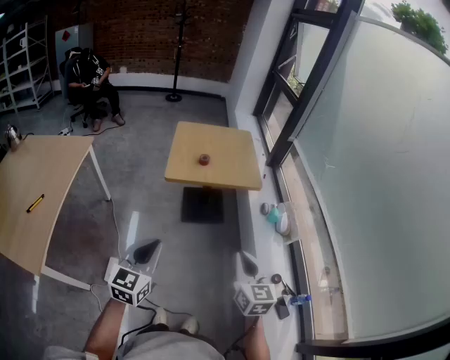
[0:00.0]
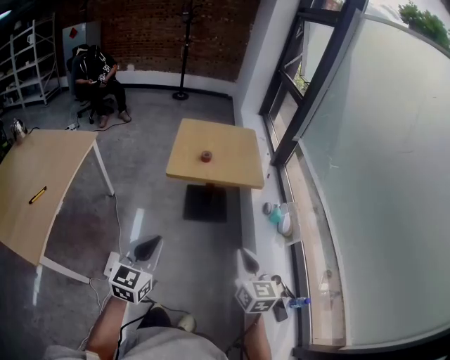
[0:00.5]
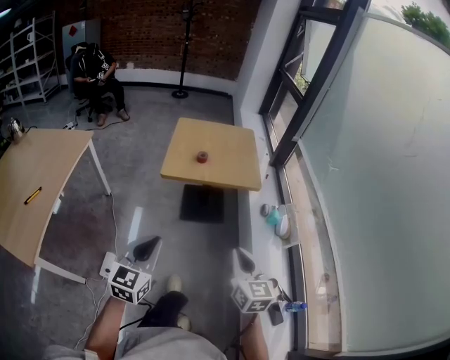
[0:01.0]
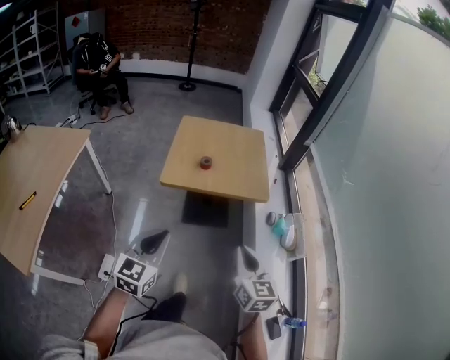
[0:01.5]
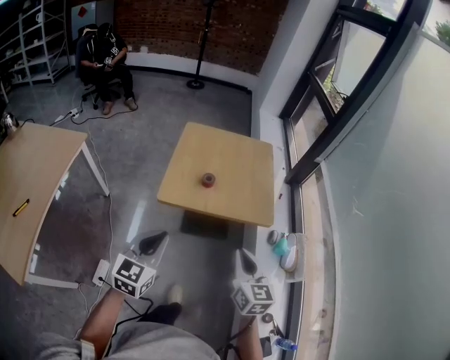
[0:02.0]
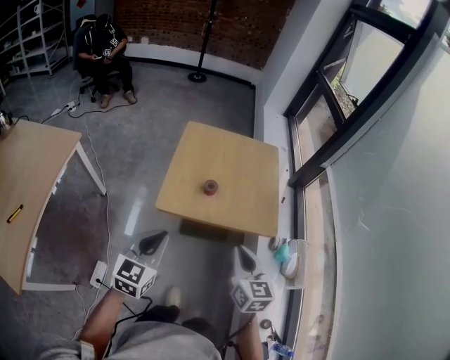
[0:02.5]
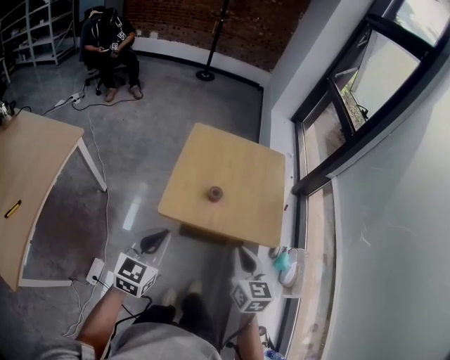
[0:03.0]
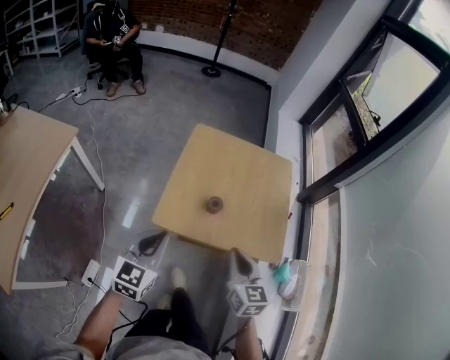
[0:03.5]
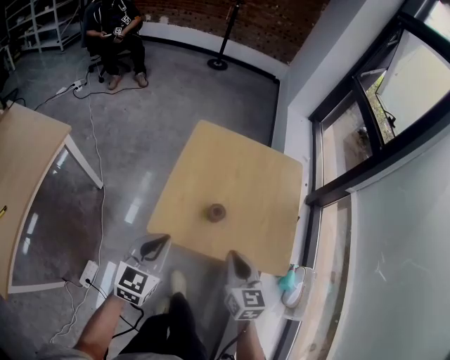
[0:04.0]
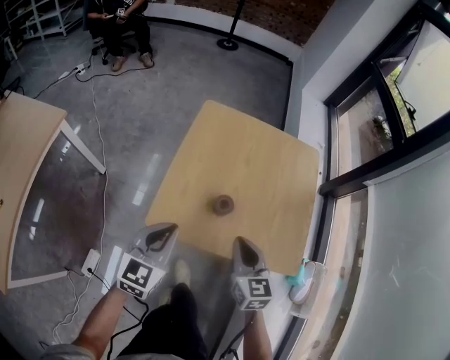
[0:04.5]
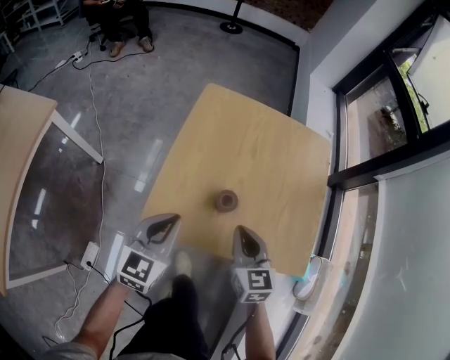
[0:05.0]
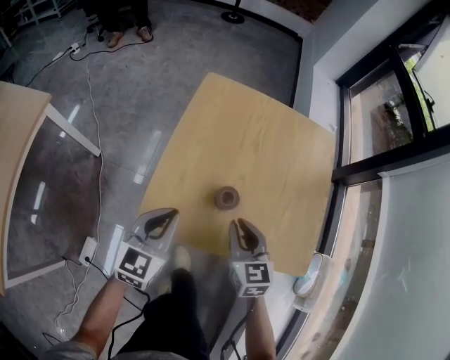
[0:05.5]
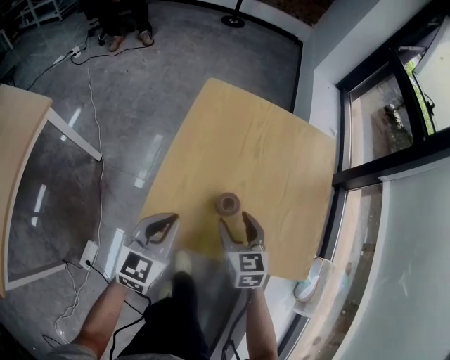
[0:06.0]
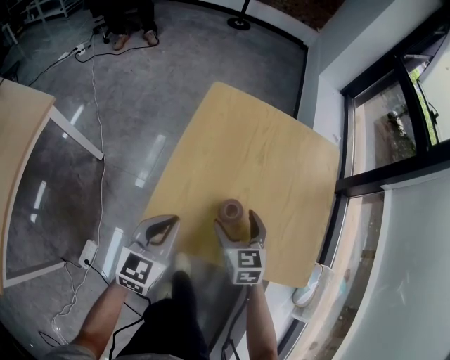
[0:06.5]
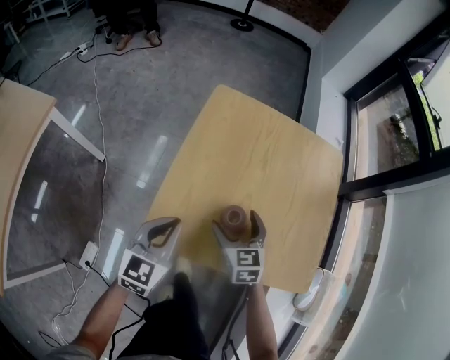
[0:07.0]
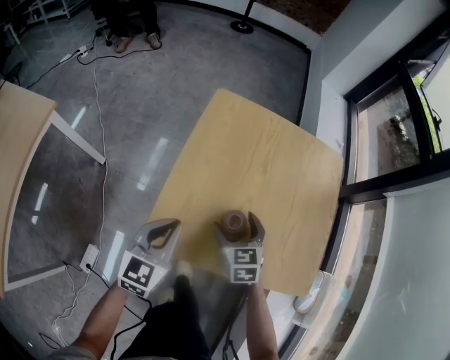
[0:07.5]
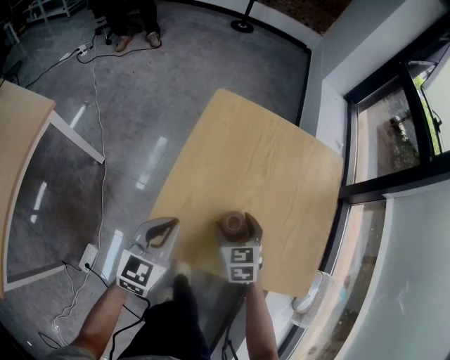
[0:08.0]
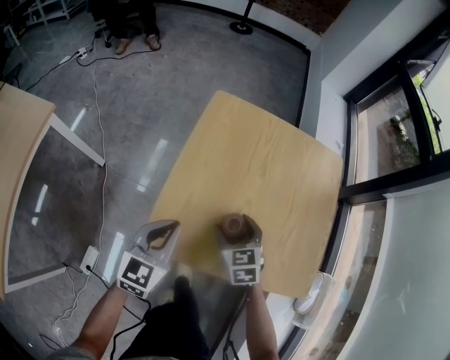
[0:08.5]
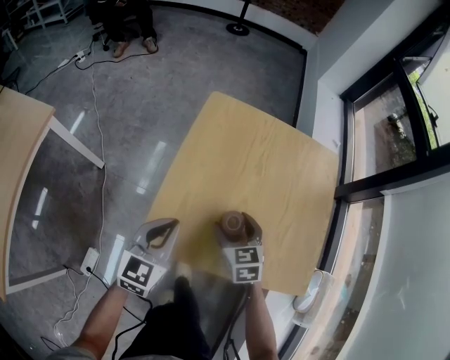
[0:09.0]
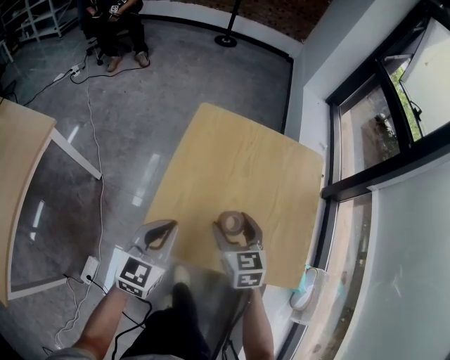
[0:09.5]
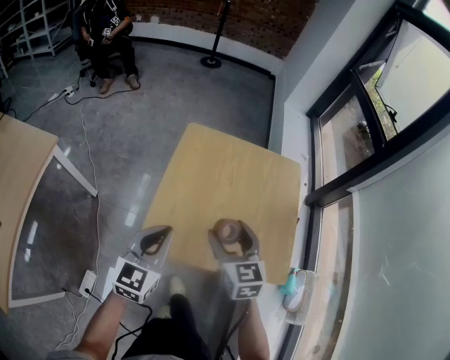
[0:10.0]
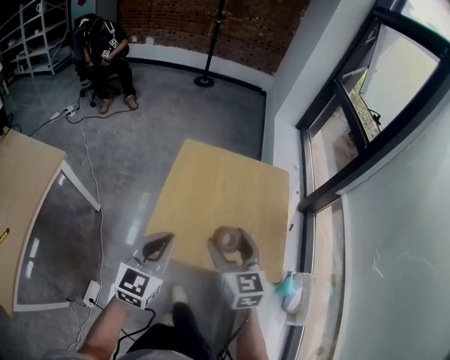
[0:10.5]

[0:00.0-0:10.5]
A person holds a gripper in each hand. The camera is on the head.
0.0 to 2.0 s: Both grippers move forward, about 30 cm.
2.0 to 4.0 s: The grippers both shift forward and downward by some 25 cm.
4.0 to 6.5 s: Both grippers travel together downward and forward, approximately 20 cm. The right gripper opens.
6.5 to 8.5 s: The grippers move only a little.
8.5 to 10.5 s: The right gripper is displaced upward by some 30 cm, and swivels approximately 30 degrees; the left gripper goes some 20 cm upward and backward.

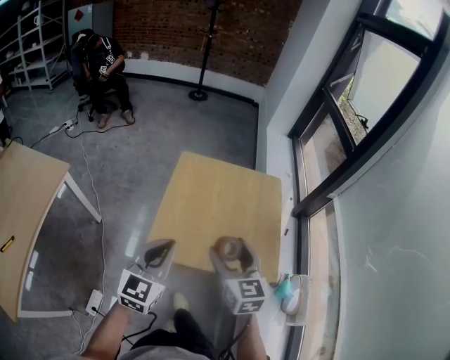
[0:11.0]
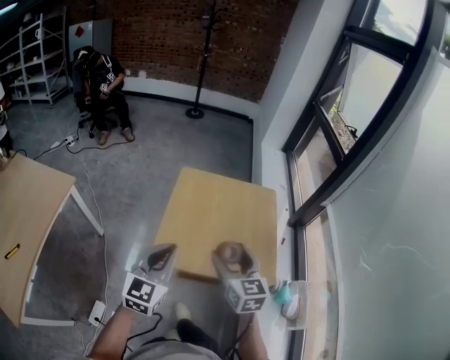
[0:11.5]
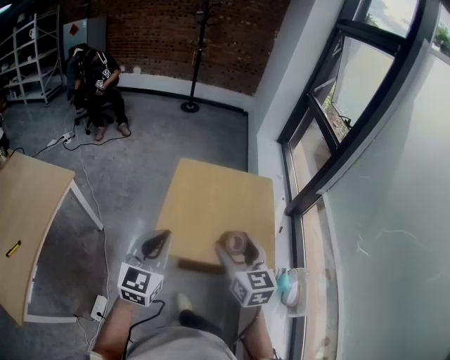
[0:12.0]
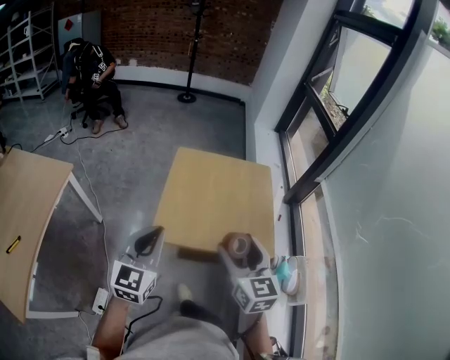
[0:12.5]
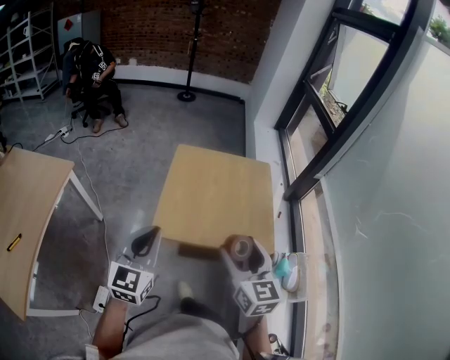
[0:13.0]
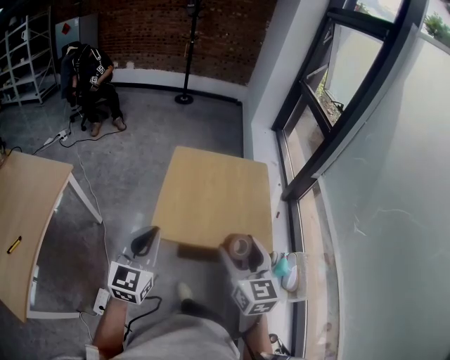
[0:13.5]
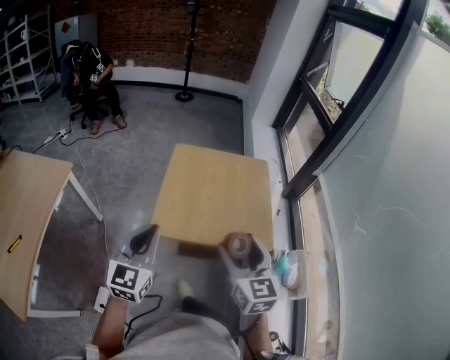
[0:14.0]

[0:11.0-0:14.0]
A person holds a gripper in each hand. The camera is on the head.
11.0 to 12.5 s: Both grippers travel together backward and upward, roughly 10 cm.
12.5 to 14.0 s: The grippers move only a little.

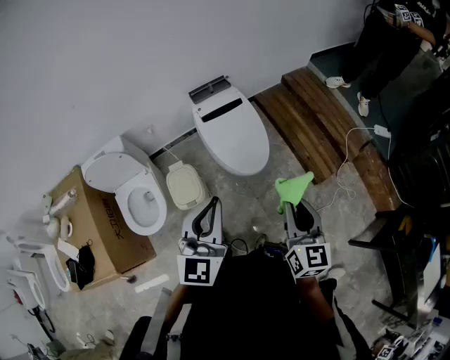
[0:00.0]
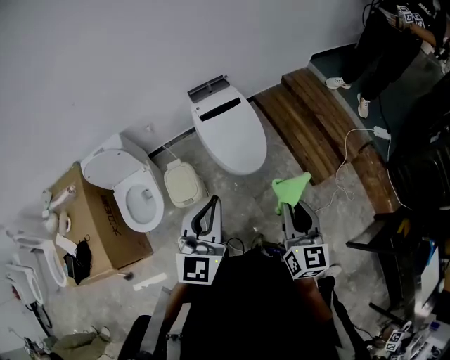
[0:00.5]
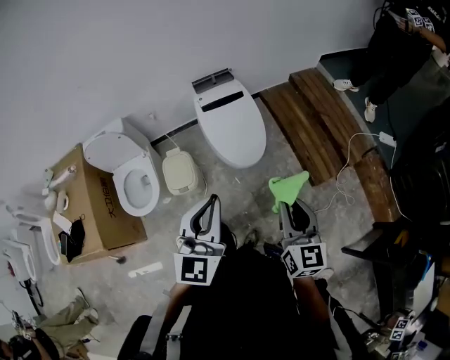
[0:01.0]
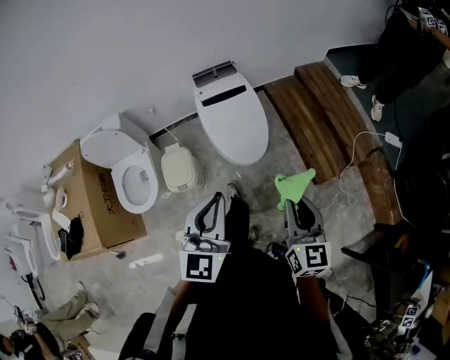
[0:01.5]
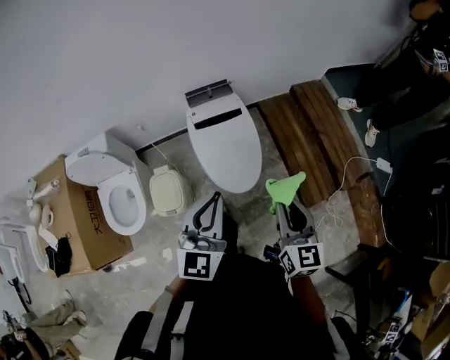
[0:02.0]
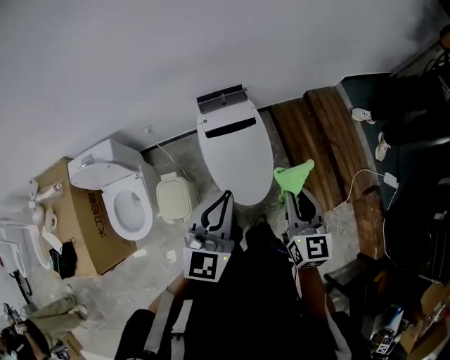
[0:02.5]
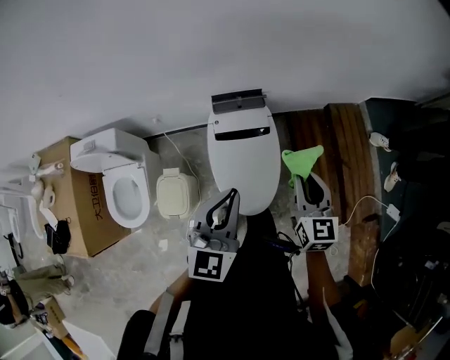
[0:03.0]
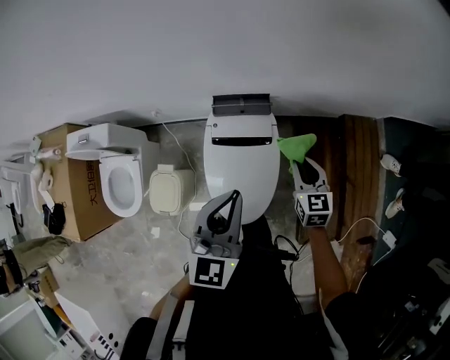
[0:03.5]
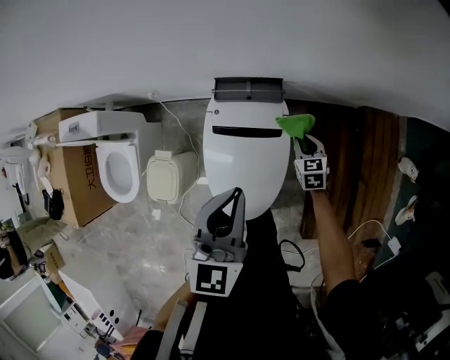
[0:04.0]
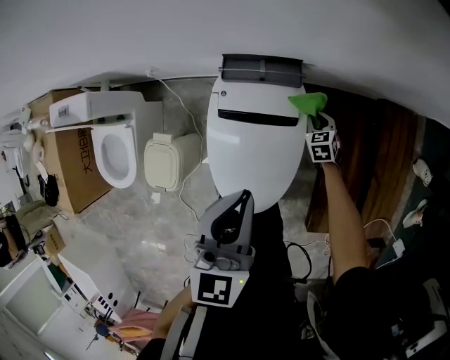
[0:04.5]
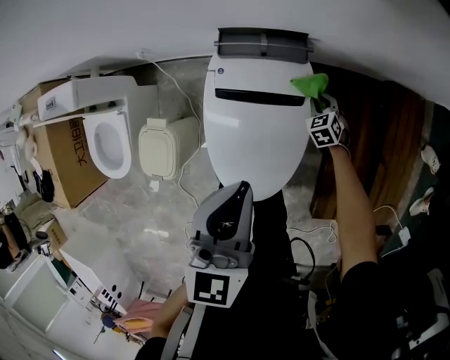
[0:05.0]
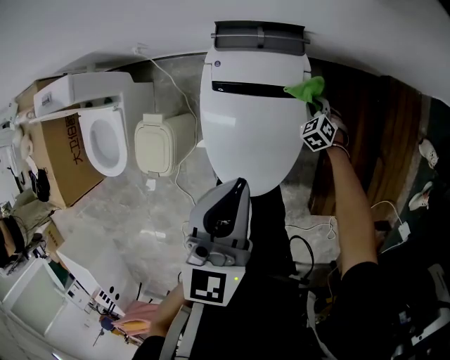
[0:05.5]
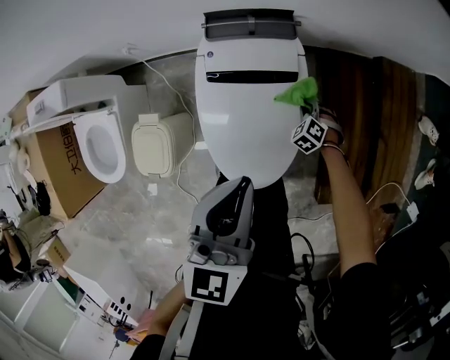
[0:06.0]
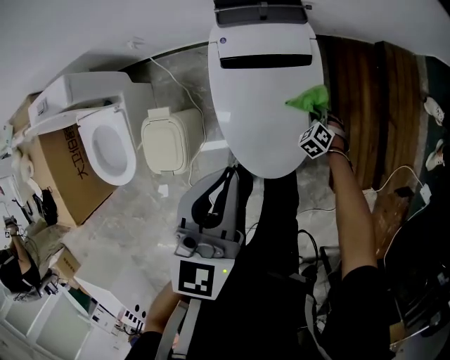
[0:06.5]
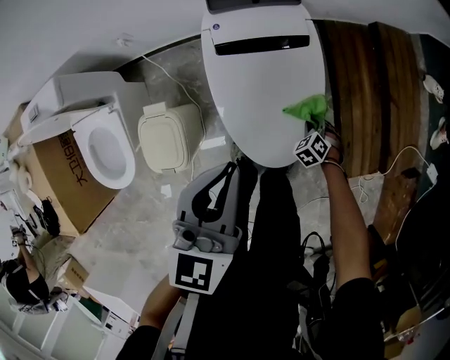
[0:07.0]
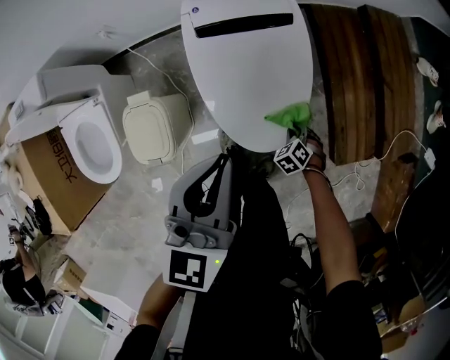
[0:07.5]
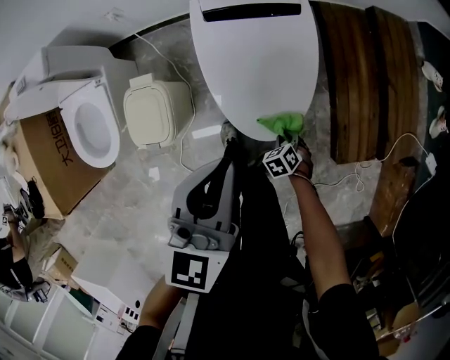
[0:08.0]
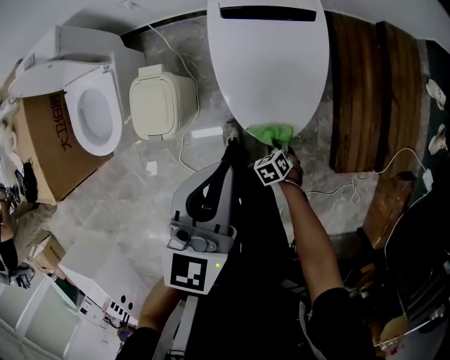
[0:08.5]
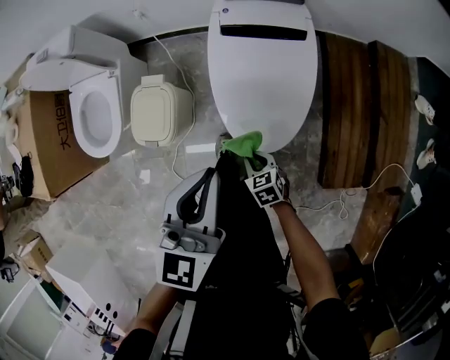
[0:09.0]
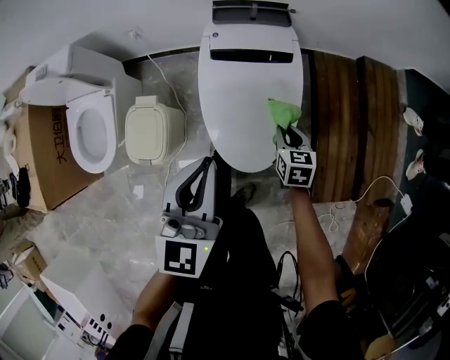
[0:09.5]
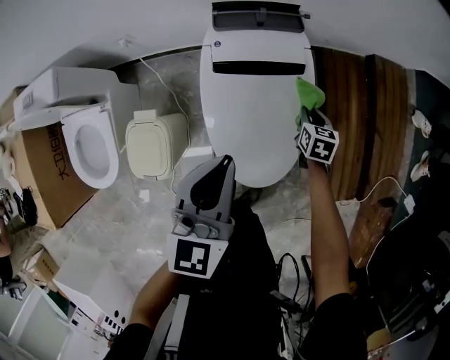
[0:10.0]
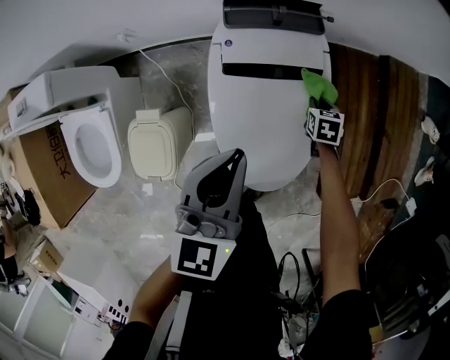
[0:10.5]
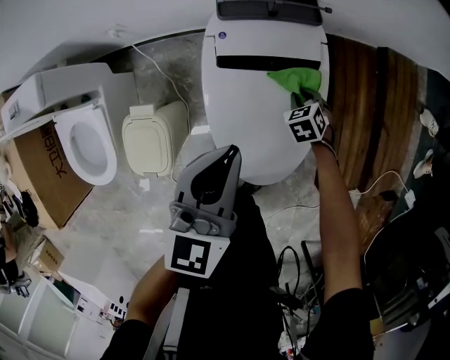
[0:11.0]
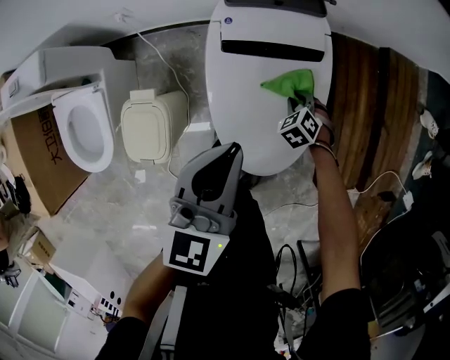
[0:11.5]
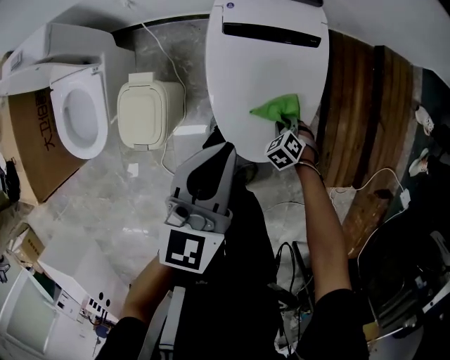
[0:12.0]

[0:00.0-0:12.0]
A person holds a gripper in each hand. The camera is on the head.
0.0 to 2.0 s: The right gripper heads forward, covering approximately 20 cm. The left gripper travels forward and to the right by roughly 20 cm.
2.0 to 4.0 s: Both grippers are carried roughly 50 cm. The left gripper swivels about 30 degrees. Meanwhile the right gripper tips its fingers downward by about 30 degrees.
4.0 to 6.0 s: The left gripper shifts about 15 cm downward and backward. The right gripper heads downward and backward, covering some 25 cm, and rolls counterclockwise, seen from behind, by about 40 degrees.
6.0 to 8.0 s: The right gripper changes place by roughly 35 cm, and swivels about 30 degrees, while the left gripper shifts by about 20 cm.
8.0 to 10.0 s: The right gripper changes place by about 35 cm, and changes its angle by approximately 40 degrees; the left gripper ends up roughly 15 cm from where it was.
10.0 to 12.0 s: The left gripper ends up some 10 cm from where it was. The right gripper ends up approximately 20 cm from where it was, and rolls counterclockwise, seen from behind, by roughly 60 degrees.

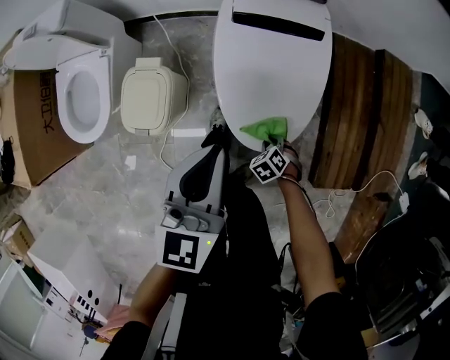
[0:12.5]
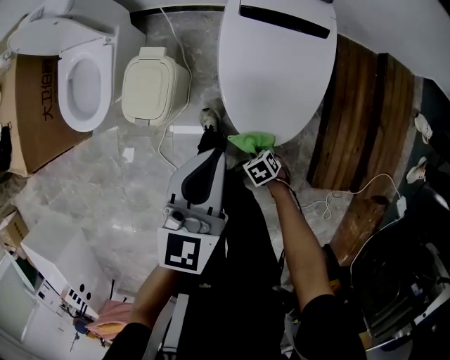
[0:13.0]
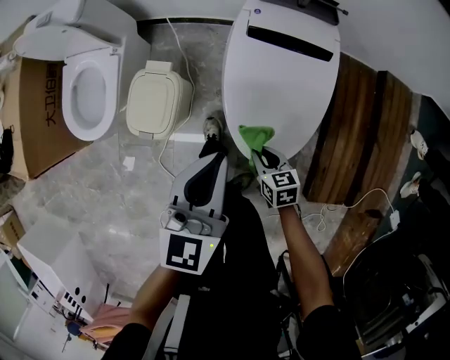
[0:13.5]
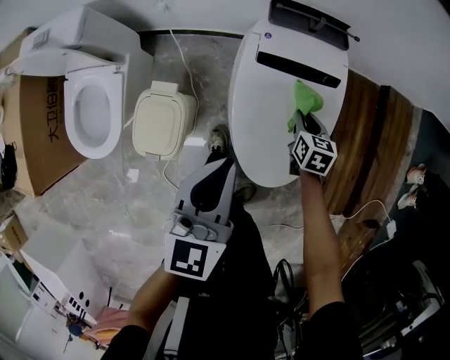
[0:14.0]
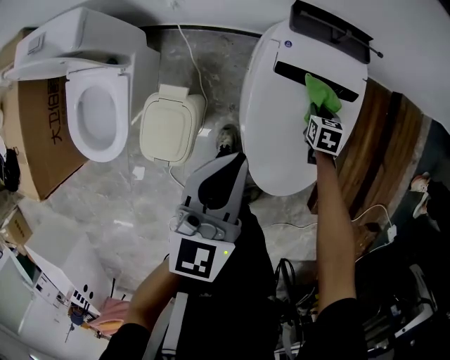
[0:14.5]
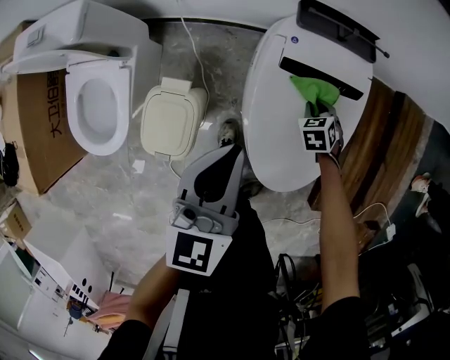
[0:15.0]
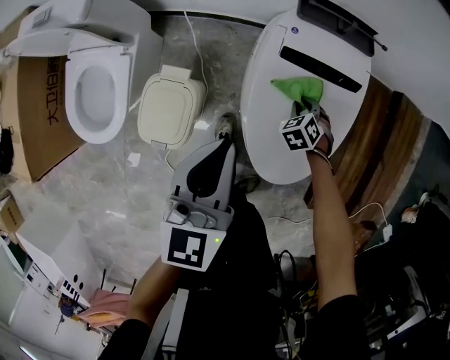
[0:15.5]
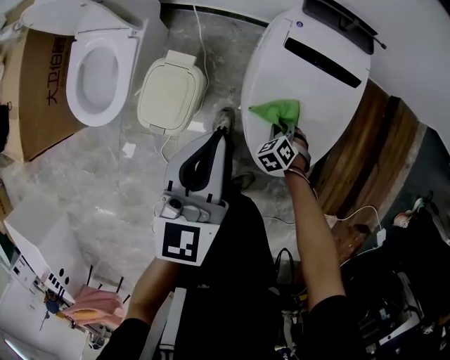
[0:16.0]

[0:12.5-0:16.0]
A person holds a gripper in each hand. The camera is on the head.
12.5 to 14.5 s: The left gripper shifts by approximately 20 cm, while the right gripper shifts by some 35 cm, and rotates approximately 40 degrees.
14.5 to 16.0 s: The right gripper shifts some 20 cm backward, and rotates around the line of its fingers by some 50 degrees, counterclockwise from behind. The left gripper heads backward, covering roughly 10 cm.
